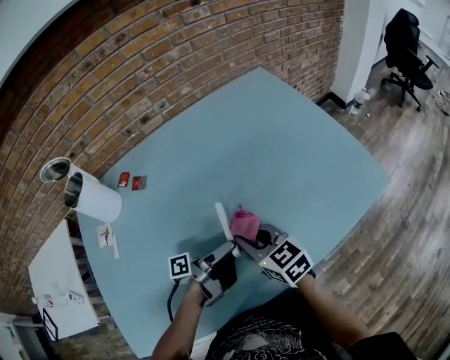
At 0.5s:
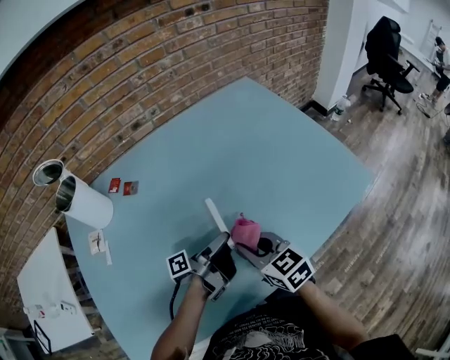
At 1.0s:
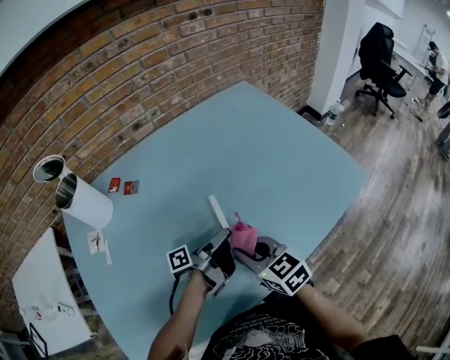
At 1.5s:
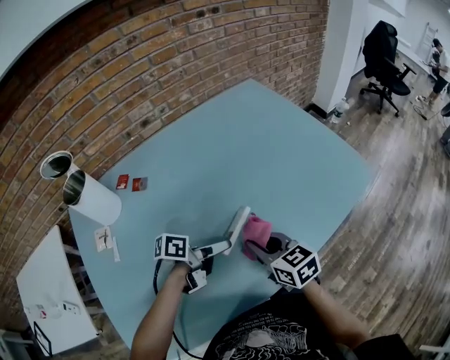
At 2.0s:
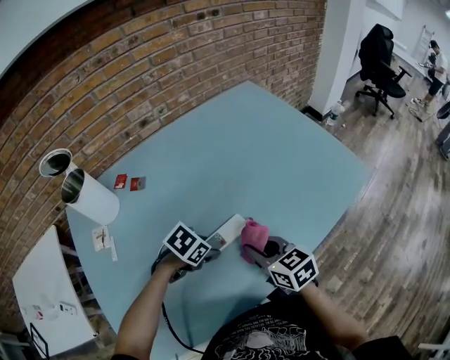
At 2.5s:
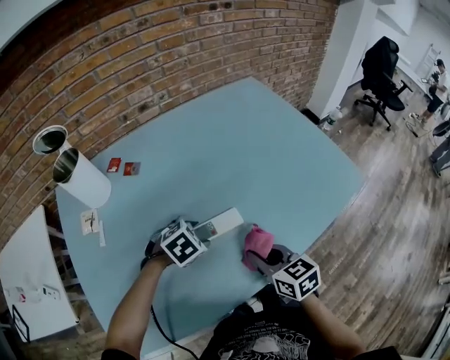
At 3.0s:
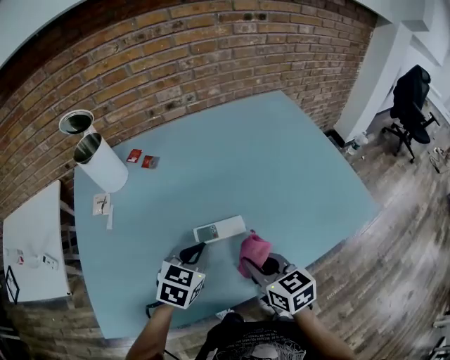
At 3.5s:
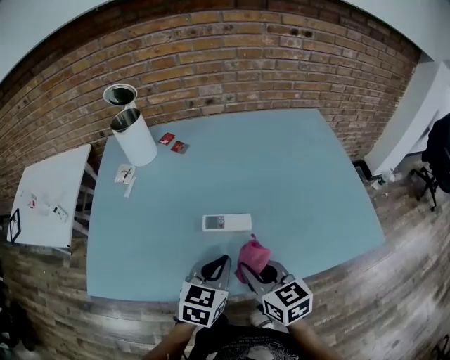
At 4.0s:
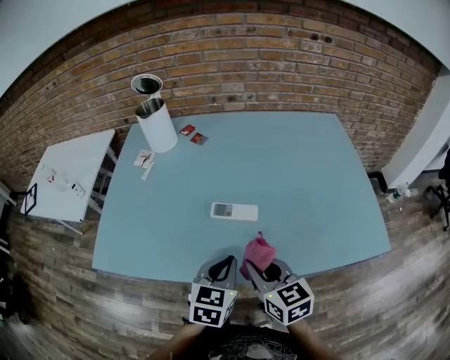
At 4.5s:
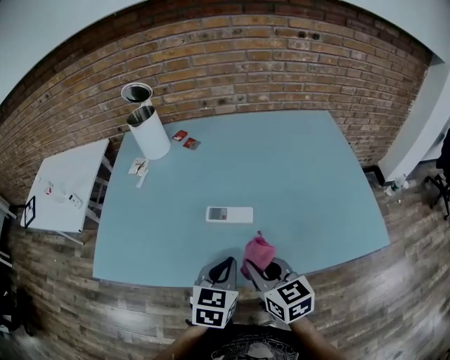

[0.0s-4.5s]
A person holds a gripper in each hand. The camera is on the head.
0.0s to 2.0s: The right gripper changes place by some 5 cm. The left gripper shifts by approximately 10 cm, and points its fingers some 60 degrees further downward.
2.0s to 4.5s: The left gripper changes place by about 20 cm, tips its fingers upward by about 30 degrees, and closes up. The right gripper changes place by roughly 10 cm, and swivels some 20 degrees.

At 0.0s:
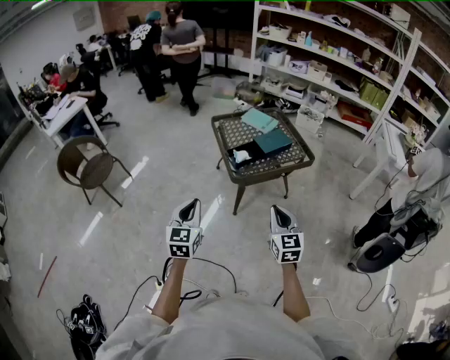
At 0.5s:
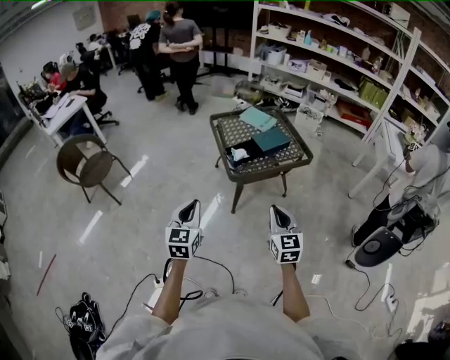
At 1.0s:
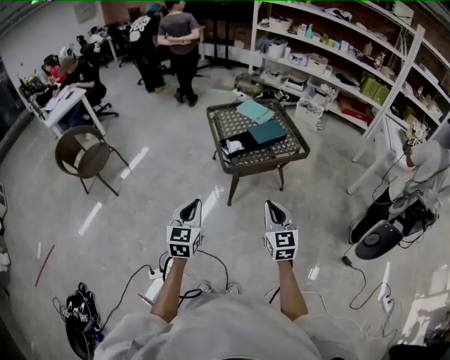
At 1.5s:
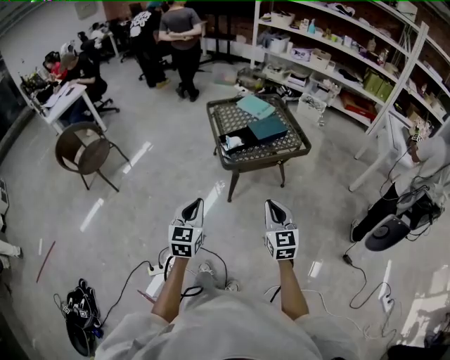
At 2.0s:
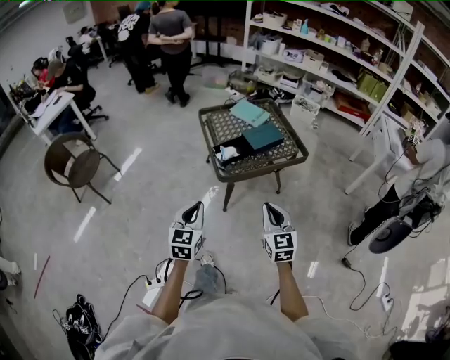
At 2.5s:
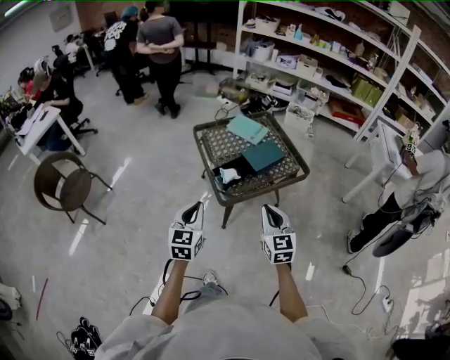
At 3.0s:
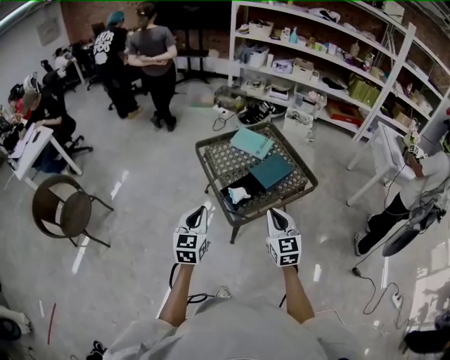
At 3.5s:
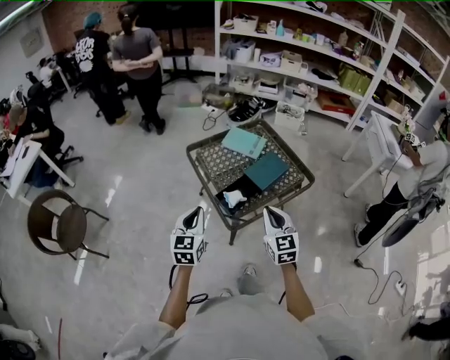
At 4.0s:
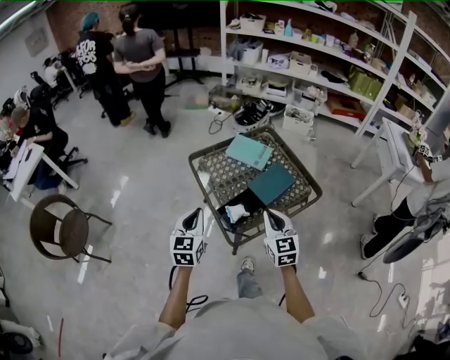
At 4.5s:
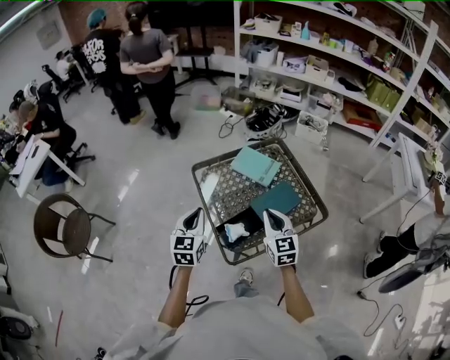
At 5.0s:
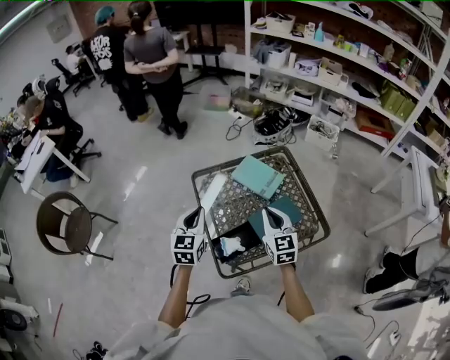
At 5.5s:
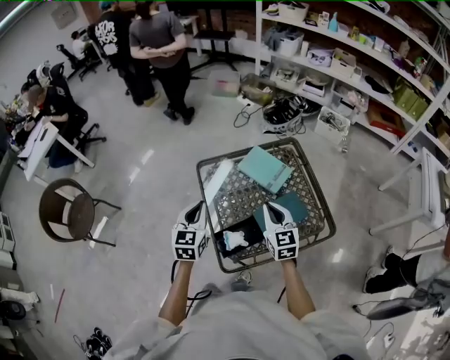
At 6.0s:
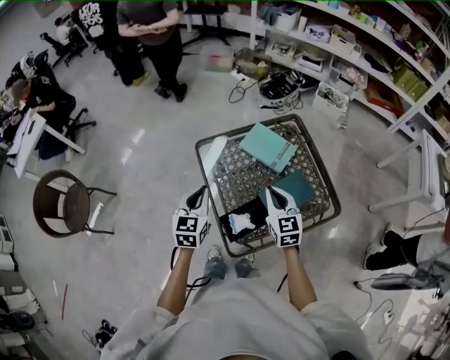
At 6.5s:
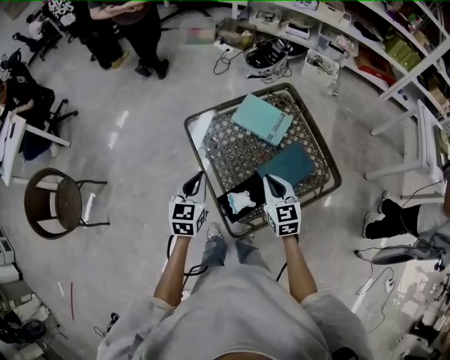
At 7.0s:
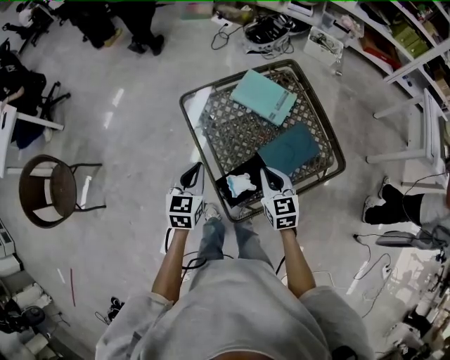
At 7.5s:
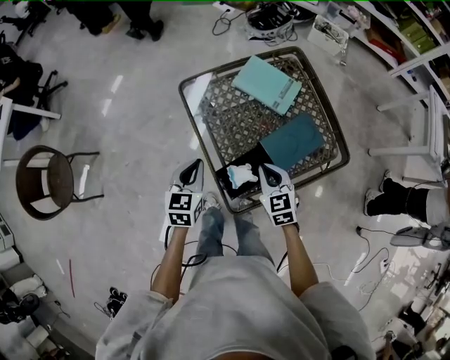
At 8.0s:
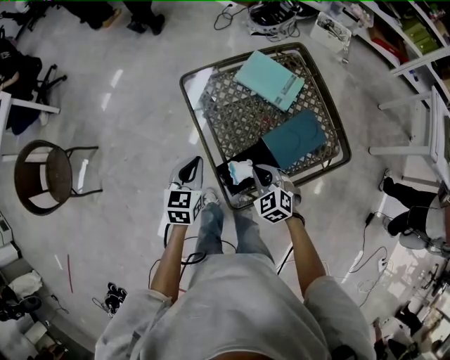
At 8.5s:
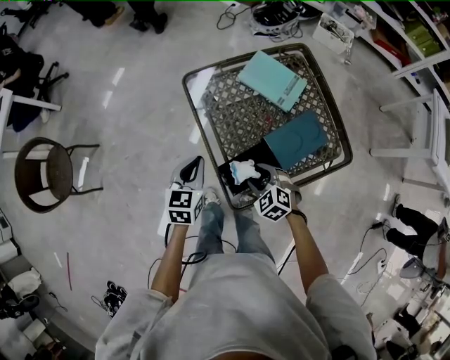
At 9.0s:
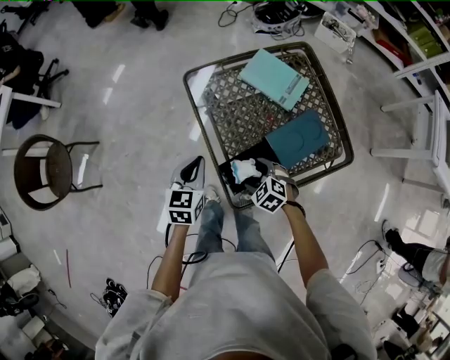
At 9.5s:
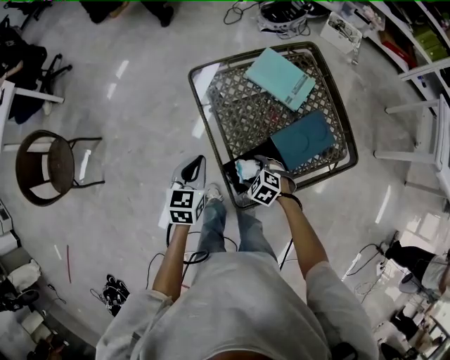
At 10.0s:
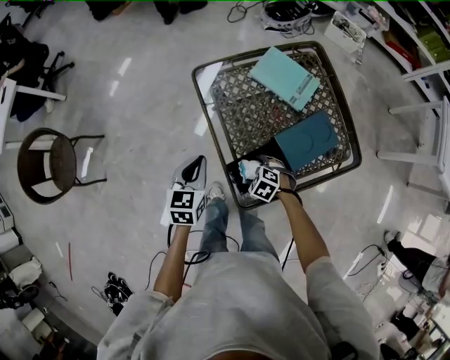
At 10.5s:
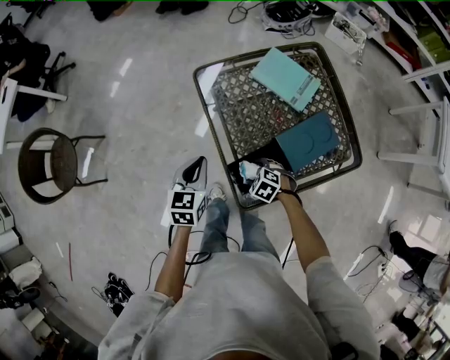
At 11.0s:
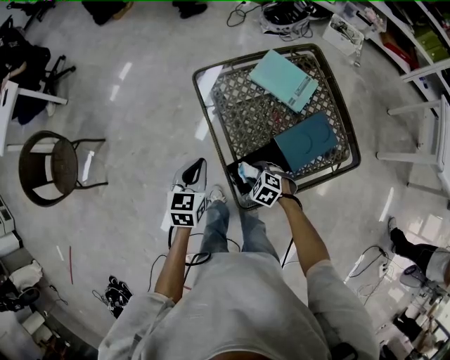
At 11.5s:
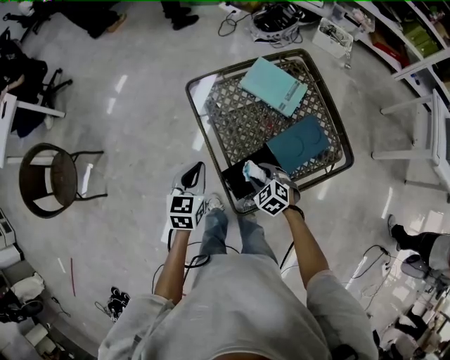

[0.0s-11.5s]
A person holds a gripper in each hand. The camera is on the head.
0.0s to 2.0s: The right gripper heads forward, covering some 5 cm. Meanwhile the left gripper moves to the right and forward, some 10 cm.
2.0s to 4.0s: The grippers both shift forward by roughly 35 cm.
4.0s to 6.0s: The two grippers go about 20 cm forward.
6.0s to 7.5s: The right gripper moves downward and backward, approximately 15 cm, while the left gripper heads downward, covering roughly 10 cm.
7.5s to 9.5s: The right gripper heads downward and to the left, covering roughly 15 cm, turns by approximately 50 degrees, and opens.
9.5s to 11.5s: The right gripper ends up approximately 5 cm from where it was, and closes up.

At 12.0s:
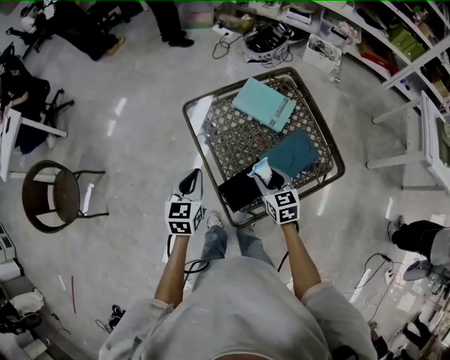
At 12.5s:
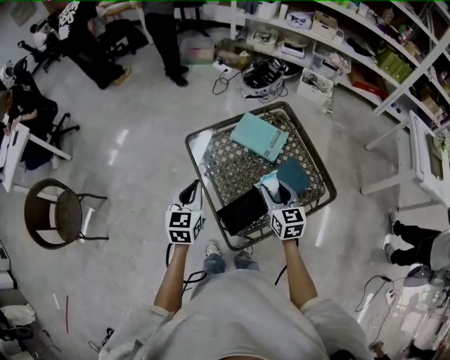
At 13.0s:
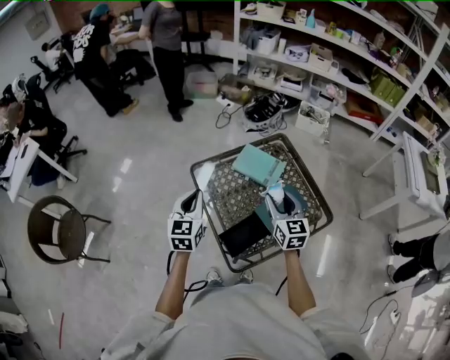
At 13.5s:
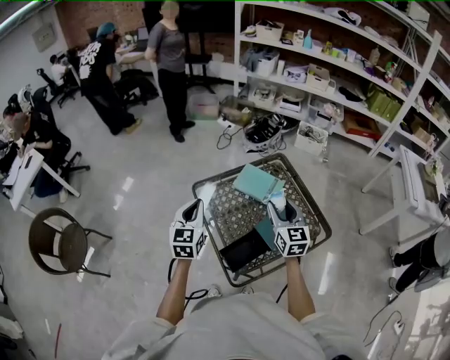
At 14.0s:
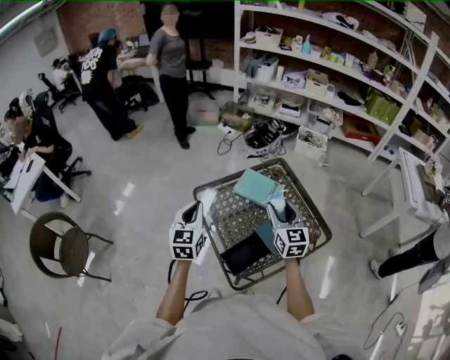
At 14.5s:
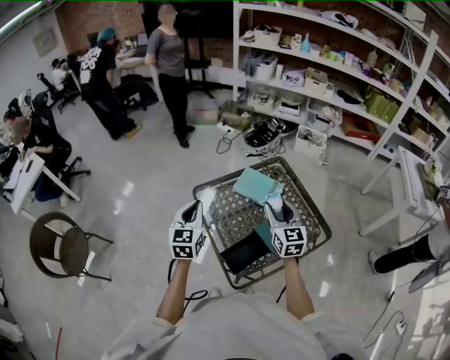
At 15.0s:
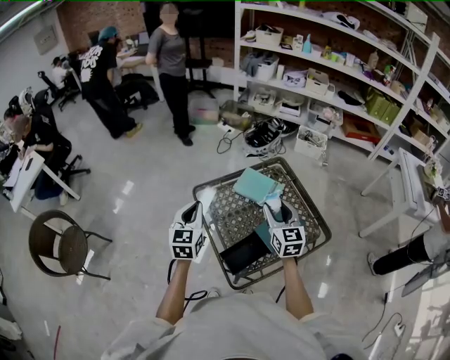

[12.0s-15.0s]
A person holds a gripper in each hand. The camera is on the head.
12.0s to 13.5s: The two grippers go roughly 20 cm upward. The right gripper changes its angle by approximately 30 degrees.
13.5s to 15.0s: The grippers move only a little.

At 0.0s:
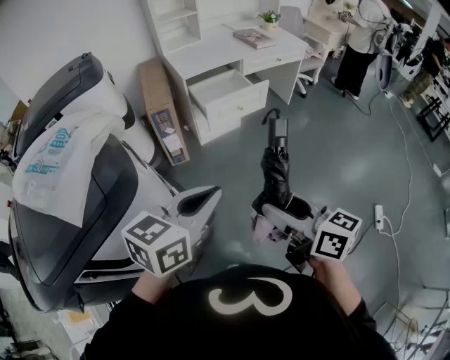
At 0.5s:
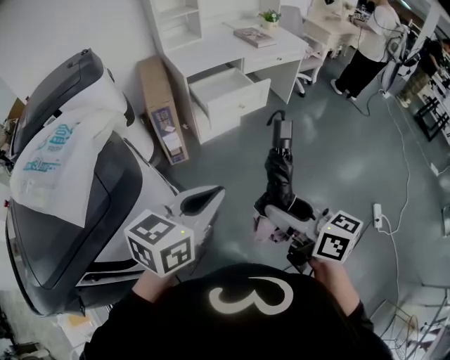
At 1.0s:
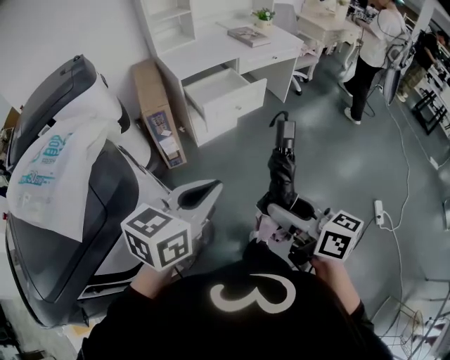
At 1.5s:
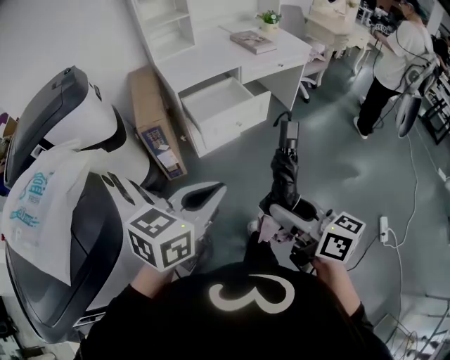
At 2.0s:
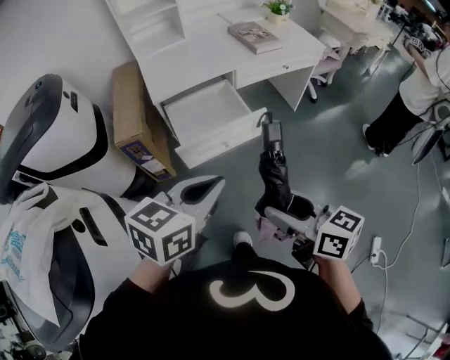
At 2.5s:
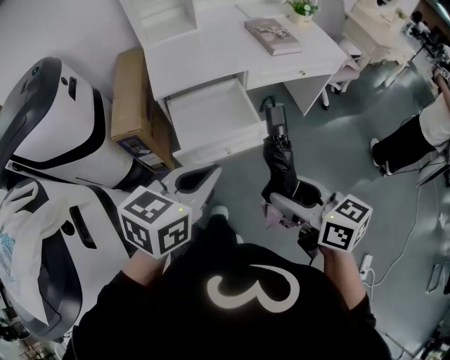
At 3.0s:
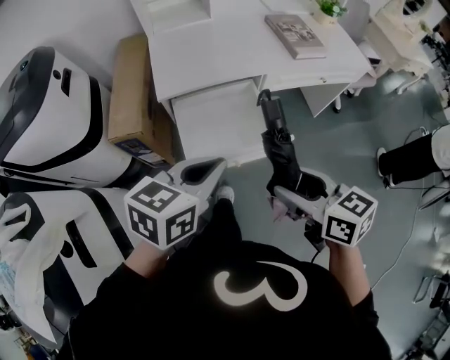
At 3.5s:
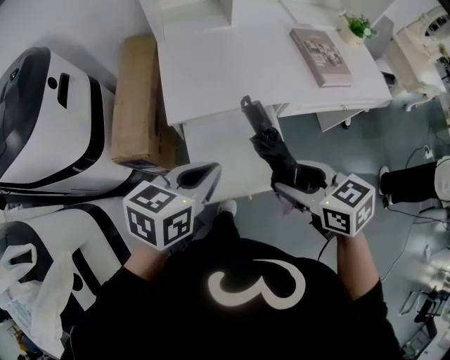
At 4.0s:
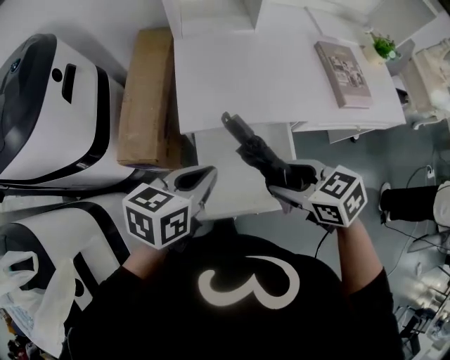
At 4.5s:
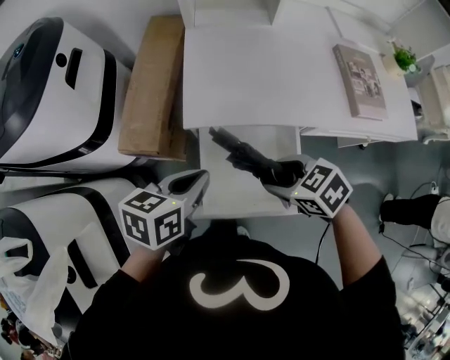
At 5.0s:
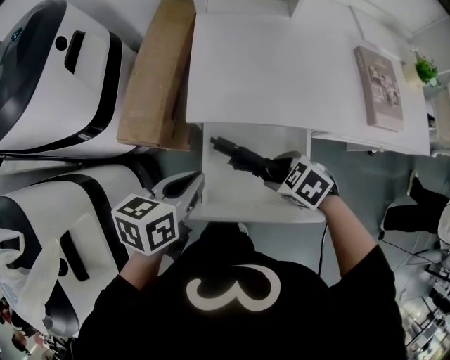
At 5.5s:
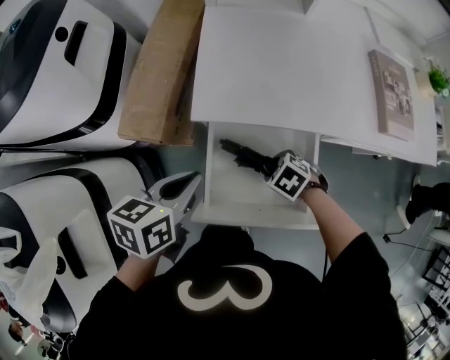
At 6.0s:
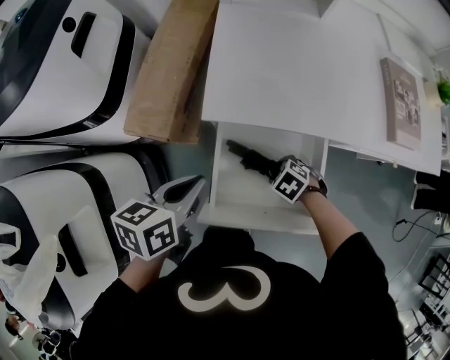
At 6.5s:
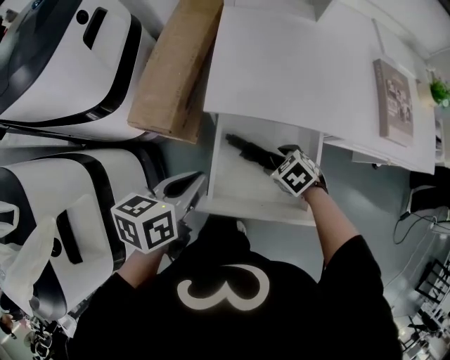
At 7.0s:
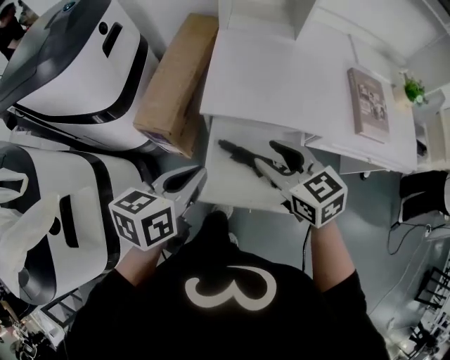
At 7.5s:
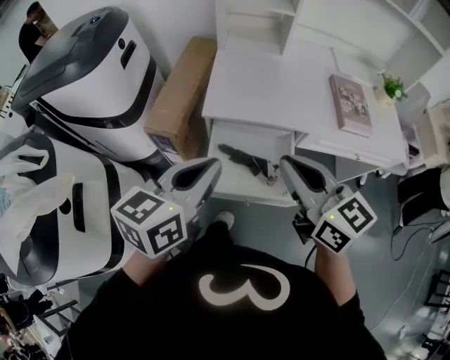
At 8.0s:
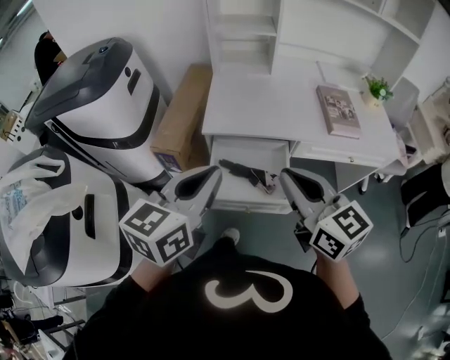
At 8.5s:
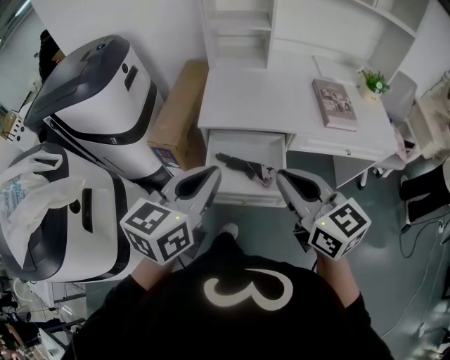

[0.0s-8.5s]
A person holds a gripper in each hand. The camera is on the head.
0.0s to 2.0s: The grippers both shift forward by roughly 35 cm.
2.0s to 4.0s: Both grippers move forward, about 40 cm. The right gripper points its fingers about 30 degrees further downward. The left gripper rotates roughly 20 degrees.
4.0s to 6.5s: The left gripper shifts some 5 cm downward, and changes its angle by about 20 degrees; the right gripper heads downward, covering approximately 25 cm, and swivels approximately 30 degrees.
6.5s to 8.5s: The left gripper moves upward and backward, about 30 cm, and swivels roughly 40 degrees, while the right gripper moves upward and backward, about 50 cm, tips its fingers upward by roughly 60 degrees, and closes.
